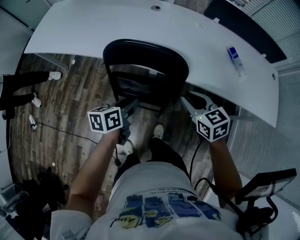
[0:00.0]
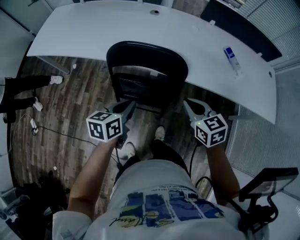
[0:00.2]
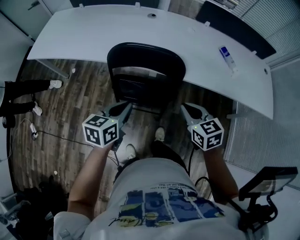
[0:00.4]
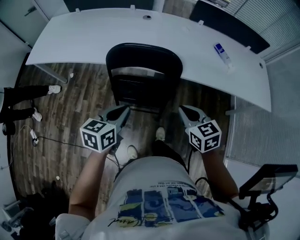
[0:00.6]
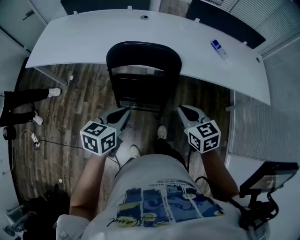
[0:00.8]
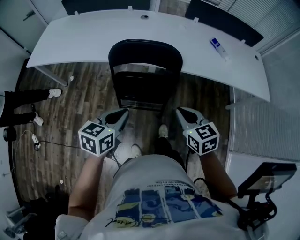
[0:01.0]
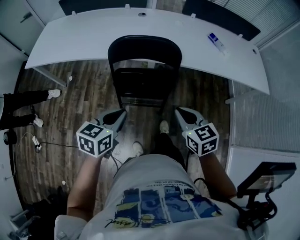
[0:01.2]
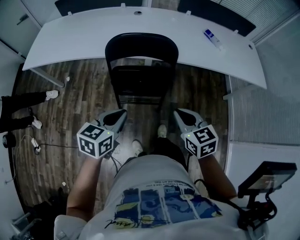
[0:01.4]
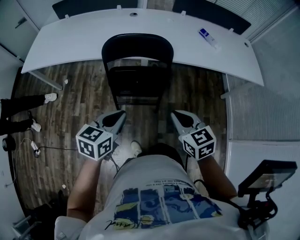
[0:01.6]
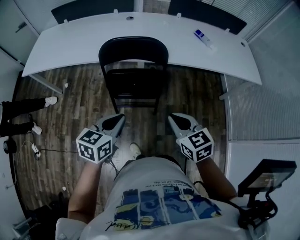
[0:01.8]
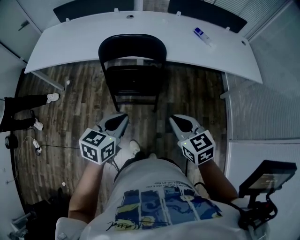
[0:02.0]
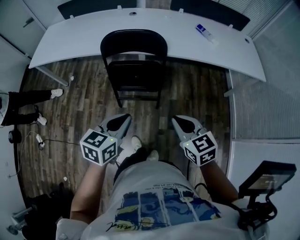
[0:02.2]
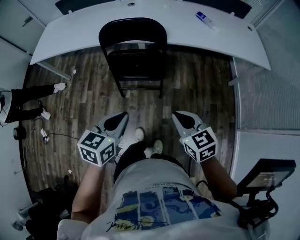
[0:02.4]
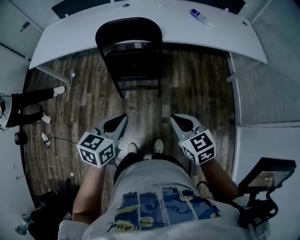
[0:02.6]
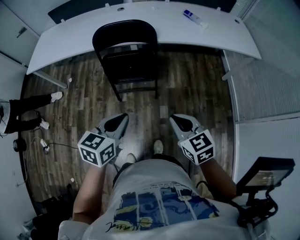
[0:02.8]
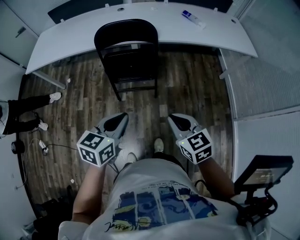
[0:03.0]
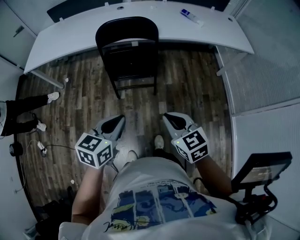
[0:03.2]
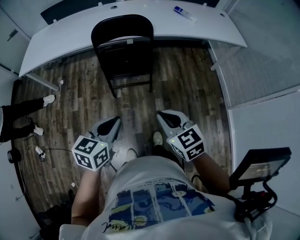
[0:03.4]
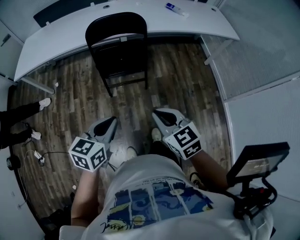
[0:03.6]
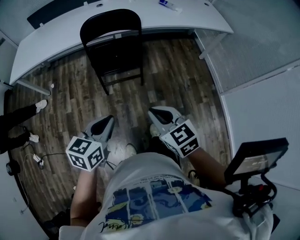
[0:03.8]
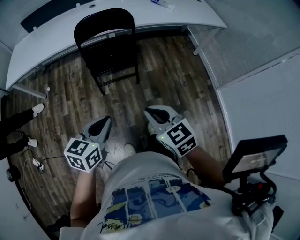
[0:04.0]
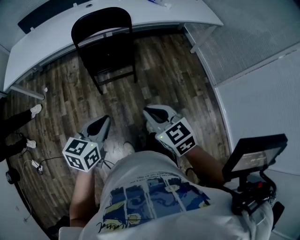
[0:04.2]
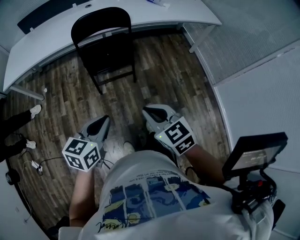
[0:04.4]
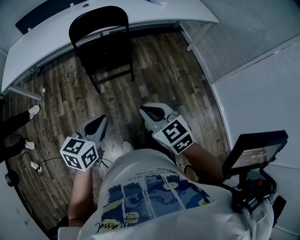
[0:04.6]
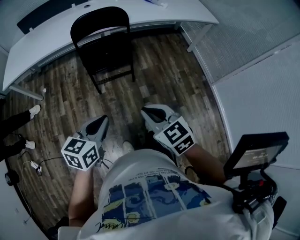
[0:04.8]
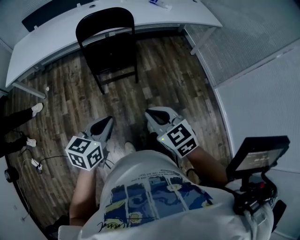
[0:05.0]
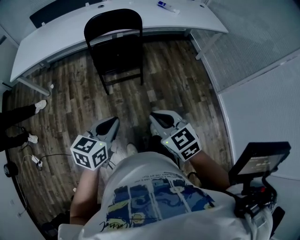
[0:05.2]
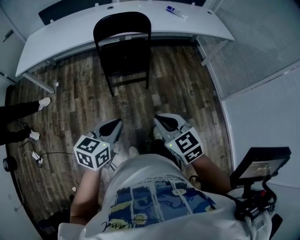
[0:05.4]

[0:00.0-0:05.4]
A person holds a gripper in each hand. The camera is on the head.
0:00.0 to 0:01.4: The left gripper heads backward and upward, covering roughly 20 cm, and swivels roughly 30 degrees. Meanwhile the right gripper is displaced backward by about 25 cm, and closes up.
0:01.4 to 0:02.8: Both grippers travel together backward and to the right, roughly 20 cm.
0:02.8 to 0:04.0: The right gripper travels to the left and backward by about 15 cm, while the left gripper goes some 15 cm backward and to the left.
0:04.0 to 0:05.4: Both grippers travel together backward, approximately 10 cm.

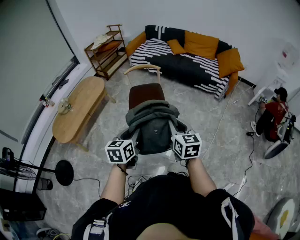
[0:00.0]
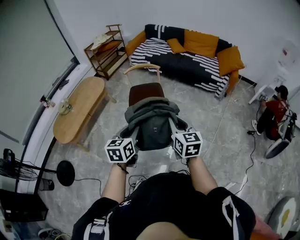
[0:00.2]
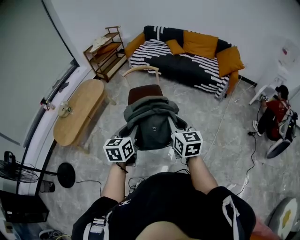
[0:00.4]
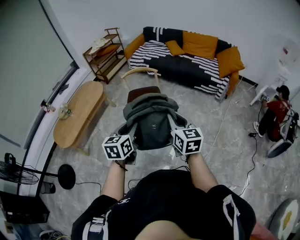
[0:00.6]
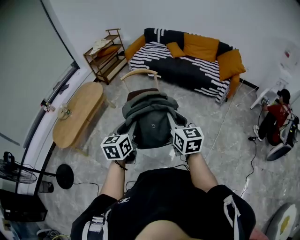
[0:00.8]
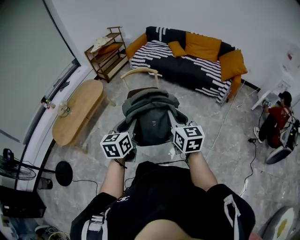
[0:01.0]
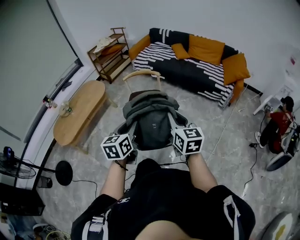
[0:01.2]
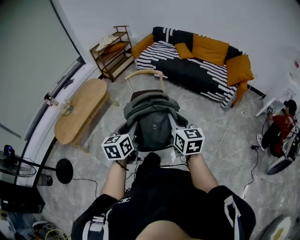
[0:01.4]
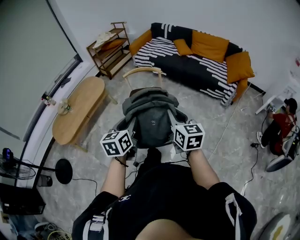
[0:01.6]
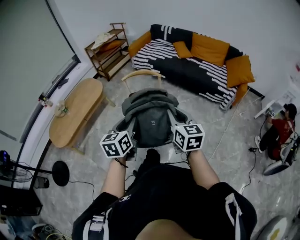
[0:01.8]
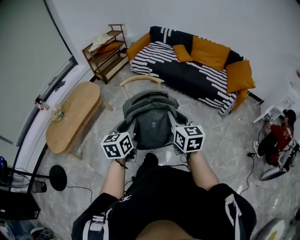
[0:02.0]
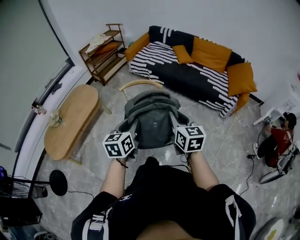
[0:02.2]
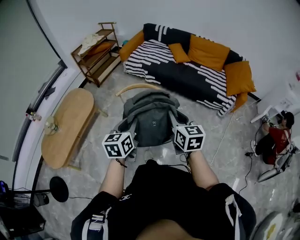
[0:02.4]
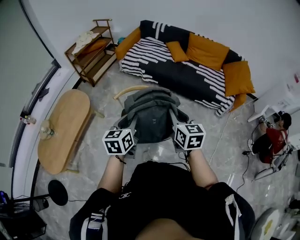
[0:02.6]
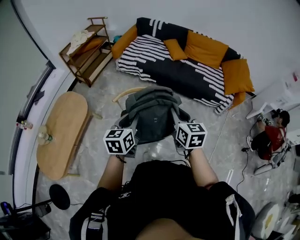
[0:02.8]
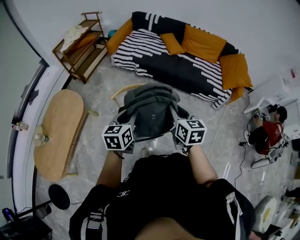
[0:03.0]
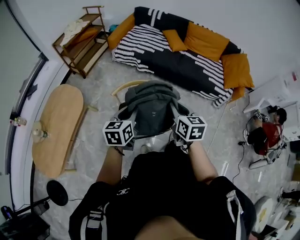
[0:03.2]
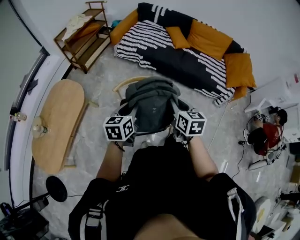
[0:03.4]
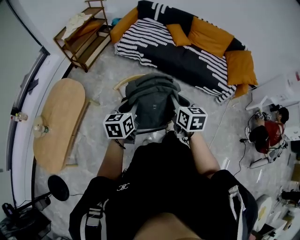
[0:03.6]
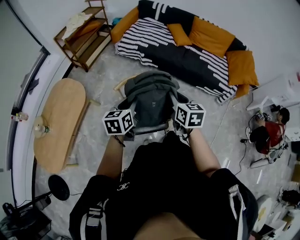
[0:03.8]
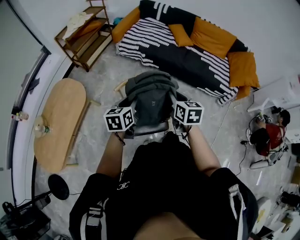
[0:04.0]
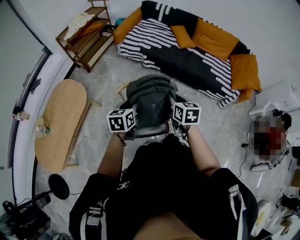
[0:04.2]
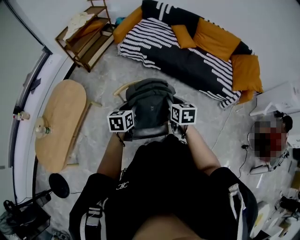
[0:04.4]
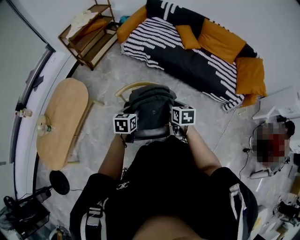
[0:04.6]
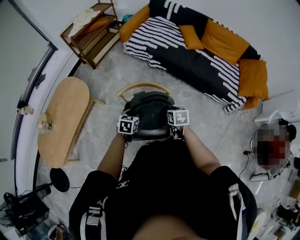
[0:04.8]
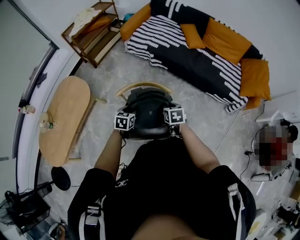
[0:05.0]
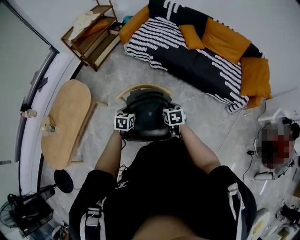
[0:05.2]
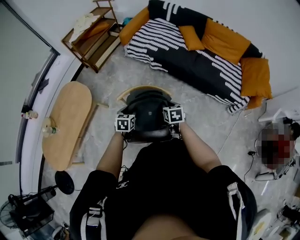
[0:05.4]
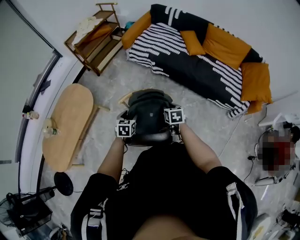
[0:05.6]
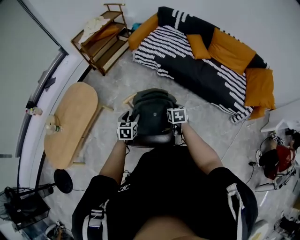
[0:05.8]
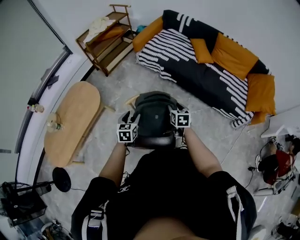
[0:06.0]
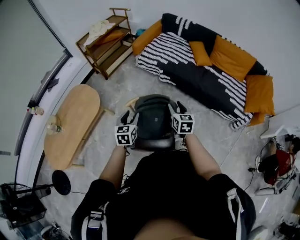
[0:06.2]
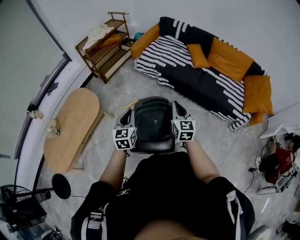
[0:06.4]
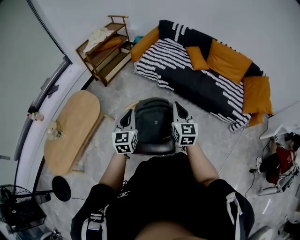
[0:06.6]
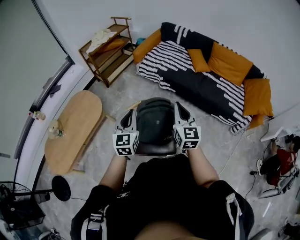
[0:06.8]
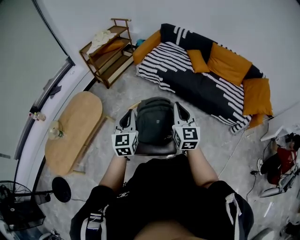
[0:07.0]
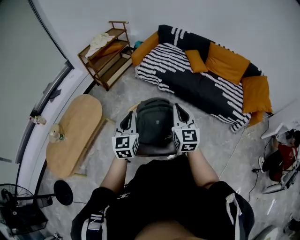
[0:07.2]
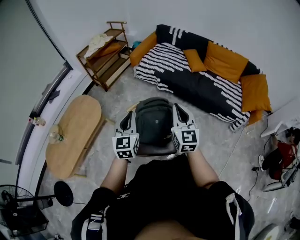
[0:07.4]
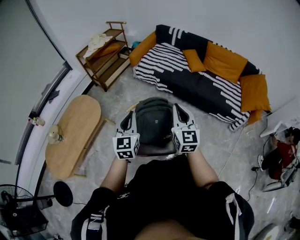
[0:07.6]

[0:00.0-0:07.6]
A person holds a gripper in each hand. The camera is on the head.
0:00.0 to 0:01.6: The right gripper is displaced forward and to the right by roughly 20 cm. The left gripper shifts approximately 20 cm forward.
0:01.6 to 0:03.0: The two grippers travel together, forward, approximately 50 cm.
0:03.0 to 0:04.6: Both grippers travel together downward and forward, about 20 cm. The right gripper swivels some 20 degrees.
0:04.6 to 0:06.0: The left gripper opens. Meanwhile the right gripper is displaced forward by roughly 5 cm, and opens its fingers.
0:06.0 to 0:07.6: Both grippers travel together upward and backward, approximately 25 cm. The right gripper angles its fingers upward, by some 40 degrees, and closes its fingers. Meanwhile the left gripper swivels some 30 degrees, and closes up.

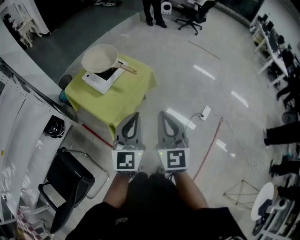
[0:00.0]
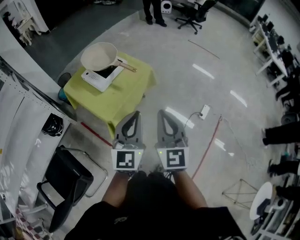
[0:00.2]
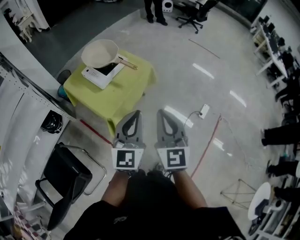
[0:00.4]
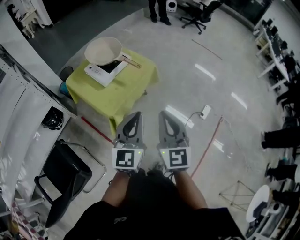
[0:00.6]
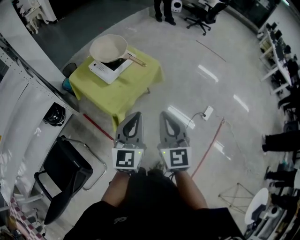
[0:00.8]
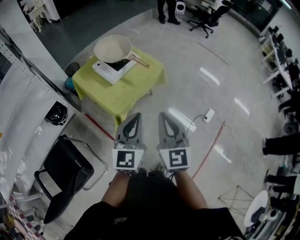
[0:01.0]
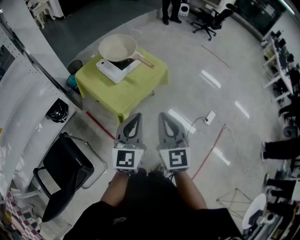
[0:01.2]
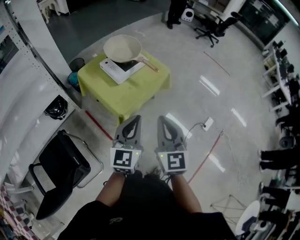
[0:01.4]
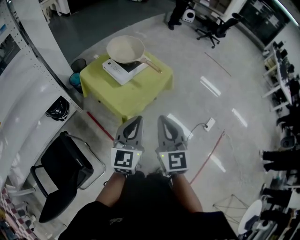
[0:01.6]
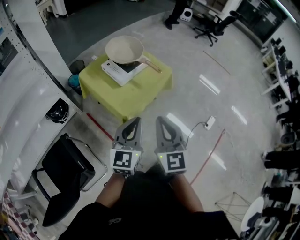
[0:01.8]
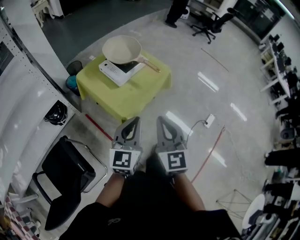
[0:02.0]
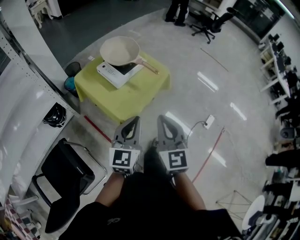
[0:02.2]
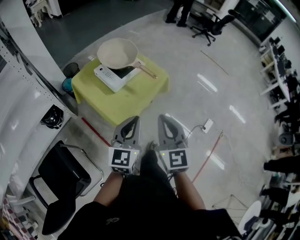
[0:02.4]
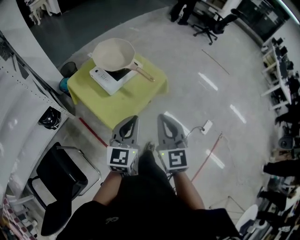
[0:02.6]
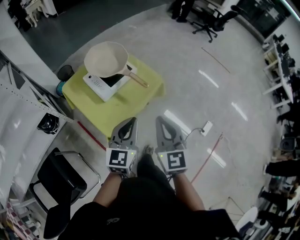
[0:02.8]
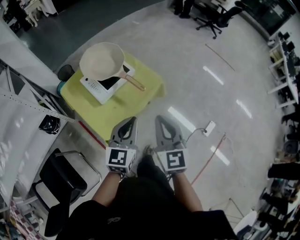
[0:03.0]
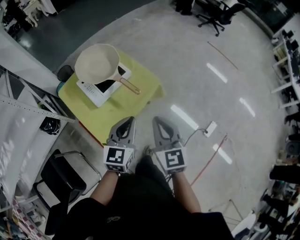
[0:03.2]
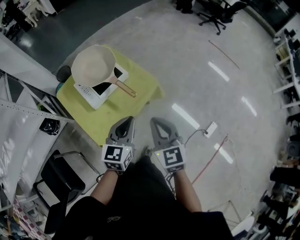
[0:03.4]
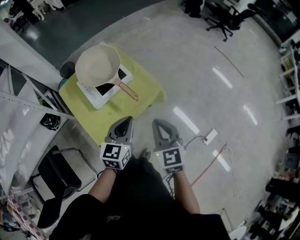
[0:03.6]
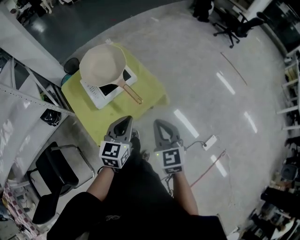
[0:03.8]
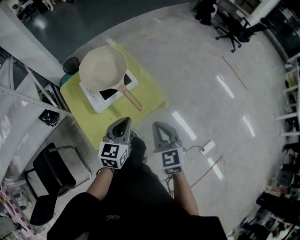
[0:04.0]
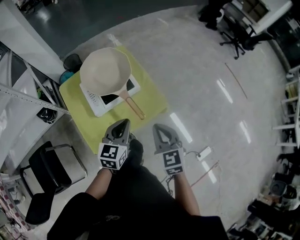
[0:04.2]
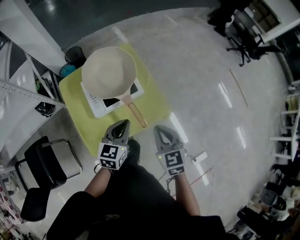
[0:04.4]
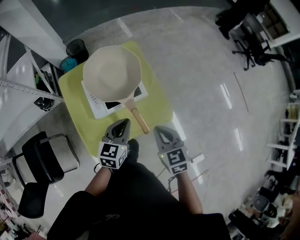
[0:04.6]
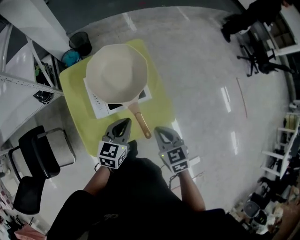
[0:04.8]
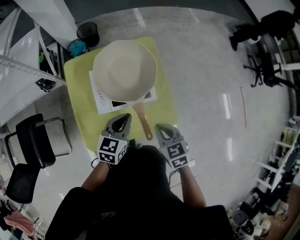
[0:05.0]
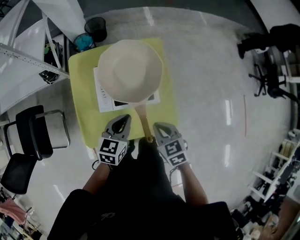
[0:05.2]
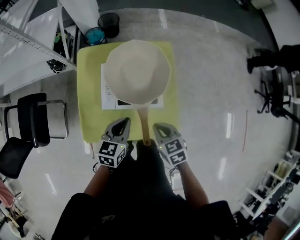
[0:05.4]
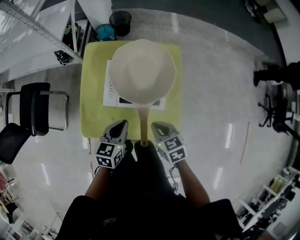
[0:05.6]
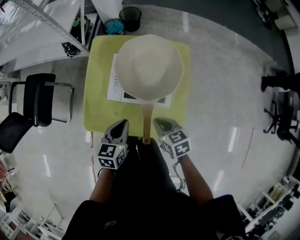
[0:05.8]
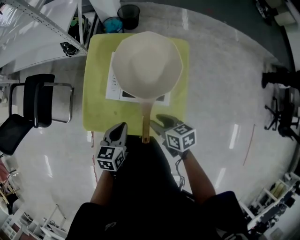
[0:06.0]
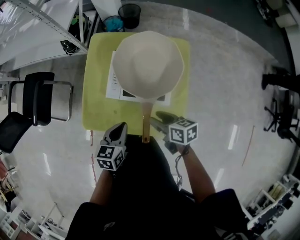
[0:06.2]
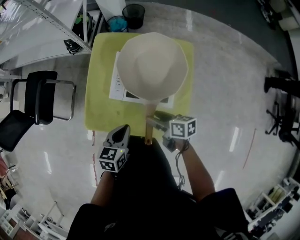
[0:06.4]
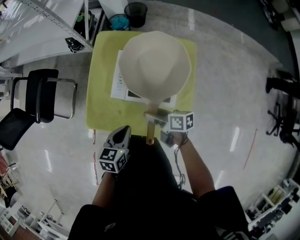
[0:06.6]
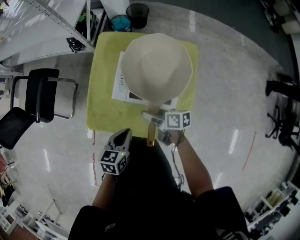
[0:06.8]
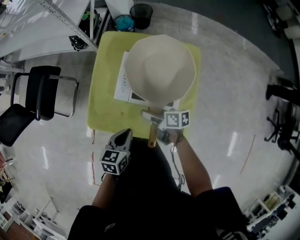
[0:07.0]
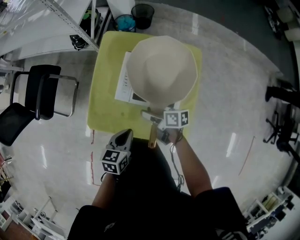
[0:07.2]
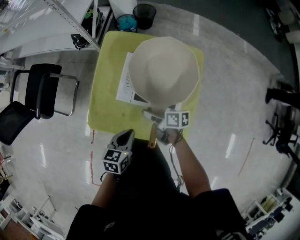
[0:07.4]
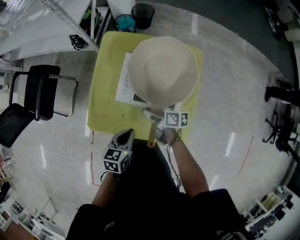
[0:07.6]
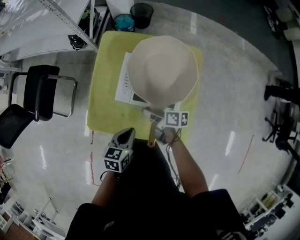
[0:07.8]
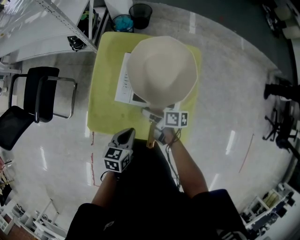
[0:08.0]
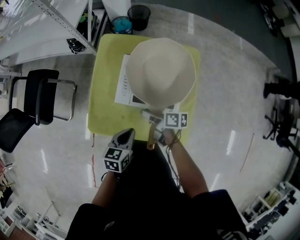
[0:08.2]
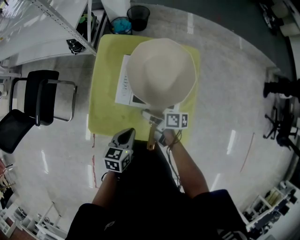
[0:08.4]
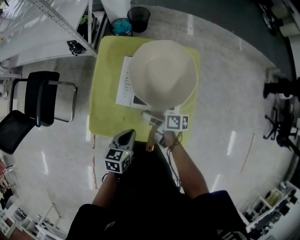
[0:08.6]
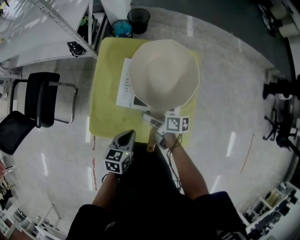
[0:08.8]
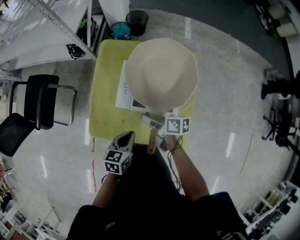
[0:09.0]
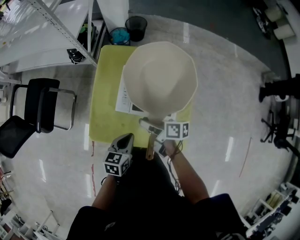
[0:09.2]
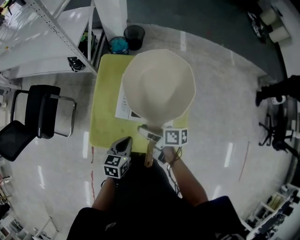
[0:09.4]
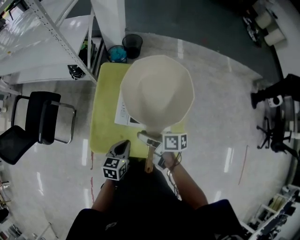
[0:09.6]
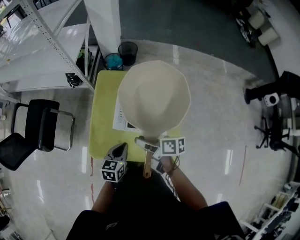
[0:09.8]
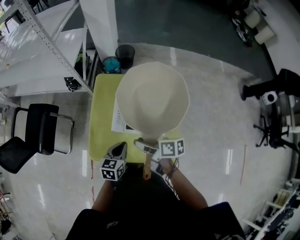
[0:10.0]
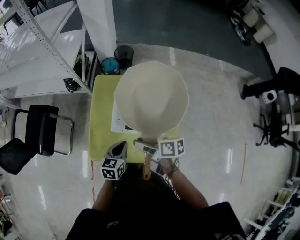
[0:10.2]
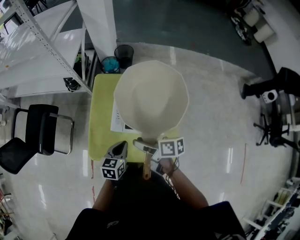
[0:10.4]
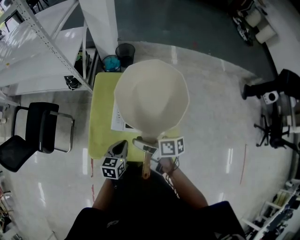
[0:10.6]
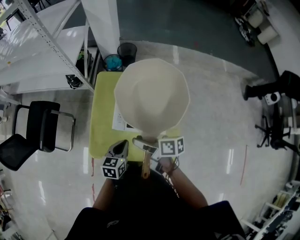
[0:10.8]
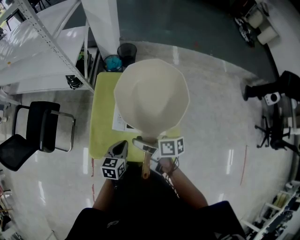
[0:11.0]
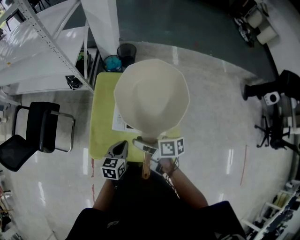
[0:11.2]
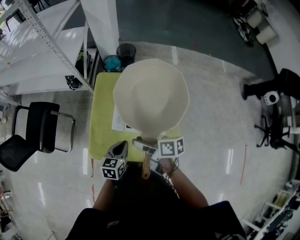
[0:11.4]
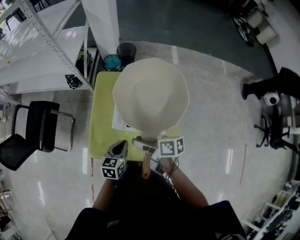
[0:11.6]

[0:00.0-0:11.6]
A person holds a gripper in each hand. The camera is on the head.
0:00.0 to 0:01.4: Both grippers travel together to the left, approximately 10 cm.
0:01.4 to 0:02.8: The two grippers go approximately 20 cm forward.
0:02.8 to 0:04.4: Both grippers travel together forward and downward, about 30 cm. The left gripper swivels some 20 degrees, while the right gripper turns by about 30 degrees.
0:04.4 to 0:05.8: The right gripper moves about 20 cm, and swivels approximately 50 degrees. Meanwhile the left gripper goes some 10 cm downward, and changes its angle by about 40 degrees.
0:05.8 to 0:07.2: The left gripper shifts by approximately 5 cm; the right gripper travels forward, downward and to the left by some 10 cm, swivels approximately 40 degrees, and opens.
0:07.2 to 0:08.8: The right gripper closes its fingers.
0:08.8 to 0:10.2: The right gripper shifts roughly 15 cm upward; the left gripper goes roughly 5 cm upward.
0:10.2 to 0:11.6: The two grippers keep their place.
